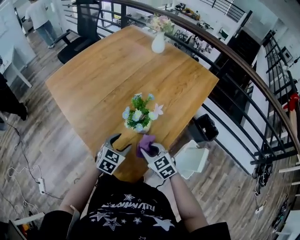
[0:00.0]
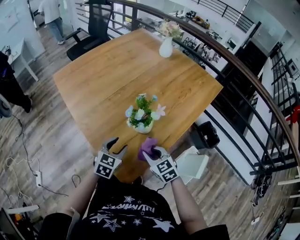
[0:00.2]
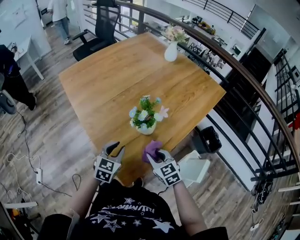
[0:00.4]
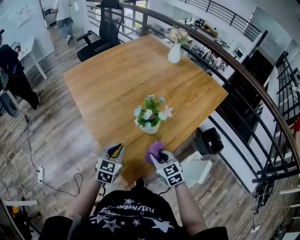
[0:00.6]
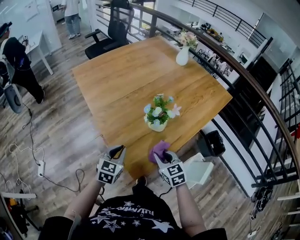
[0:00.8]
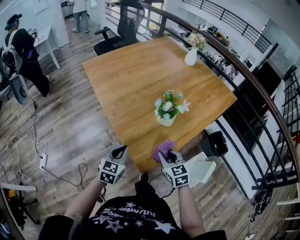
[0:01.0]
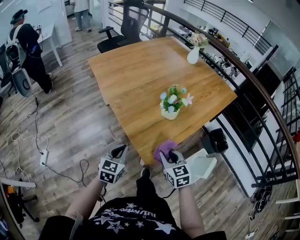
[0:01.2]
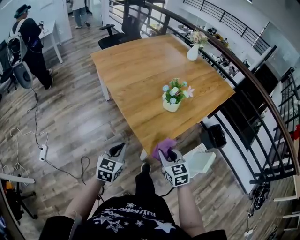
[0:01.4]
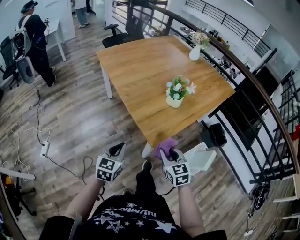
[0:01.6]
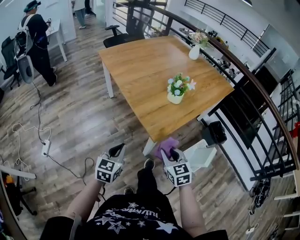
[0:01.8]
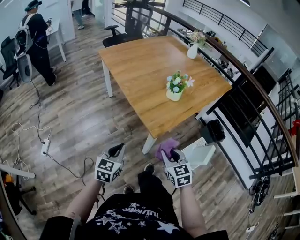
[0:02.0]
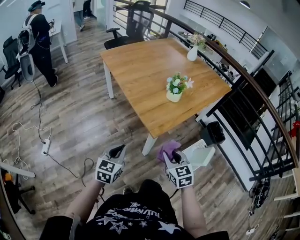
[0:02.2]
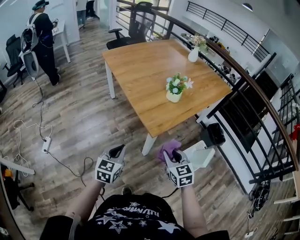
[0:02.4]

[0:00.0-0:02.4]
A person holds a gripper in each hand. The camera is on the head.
0:00.0 to 0:01.2: The left gripper shifts roughly 25 cm backward, to the left and upward, turns by approximately 30 degrees, and closes its fingers. The right gripper moves backward and upward, roughly 15 cm.
0:01.2 to 0:02.4: Both grippers move backward, about 20 cm.

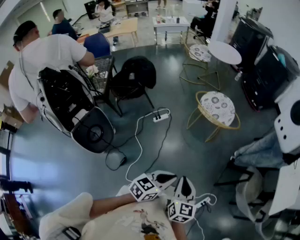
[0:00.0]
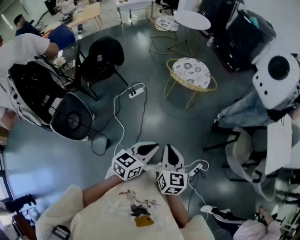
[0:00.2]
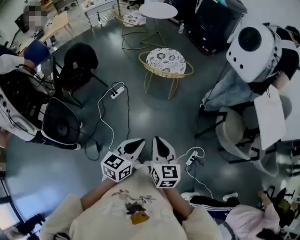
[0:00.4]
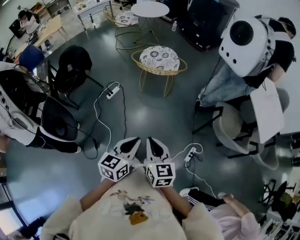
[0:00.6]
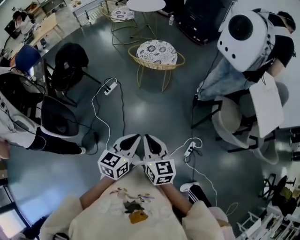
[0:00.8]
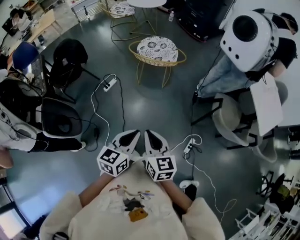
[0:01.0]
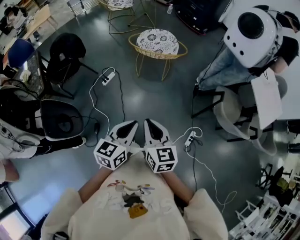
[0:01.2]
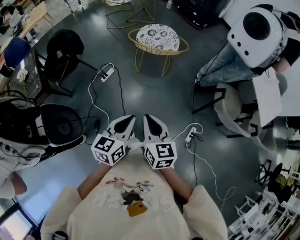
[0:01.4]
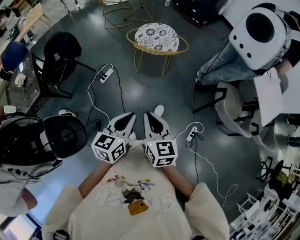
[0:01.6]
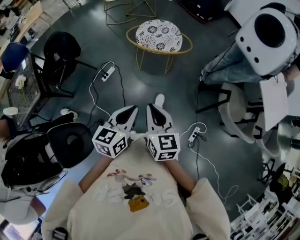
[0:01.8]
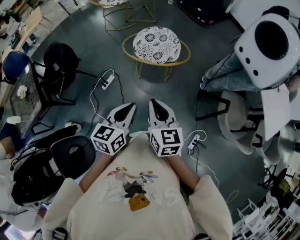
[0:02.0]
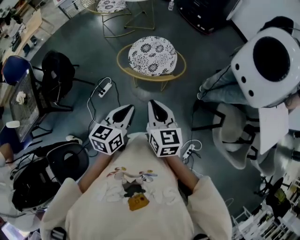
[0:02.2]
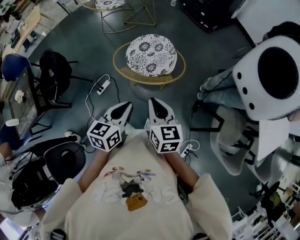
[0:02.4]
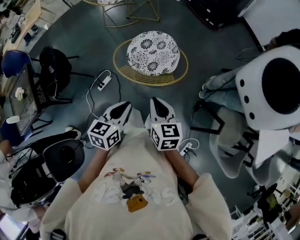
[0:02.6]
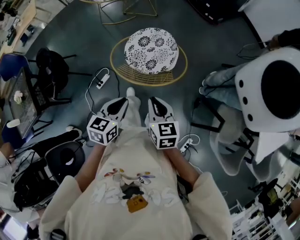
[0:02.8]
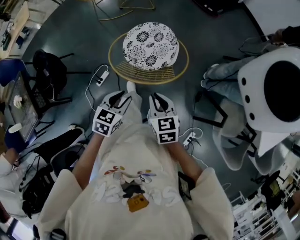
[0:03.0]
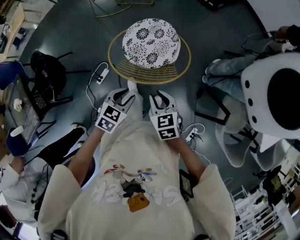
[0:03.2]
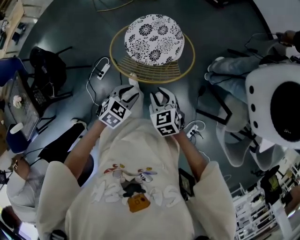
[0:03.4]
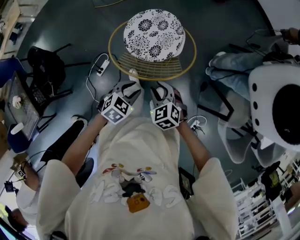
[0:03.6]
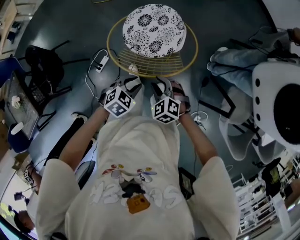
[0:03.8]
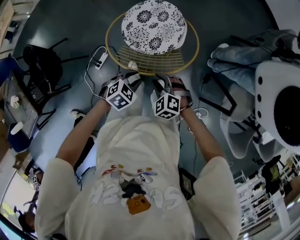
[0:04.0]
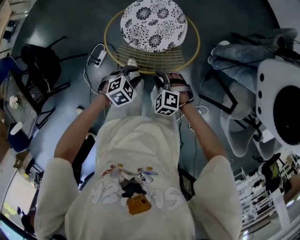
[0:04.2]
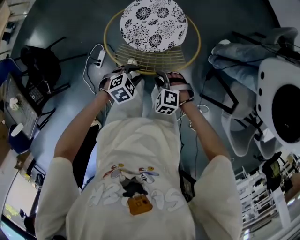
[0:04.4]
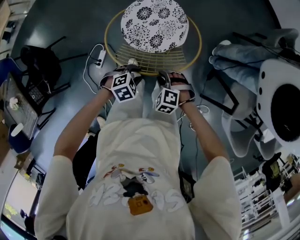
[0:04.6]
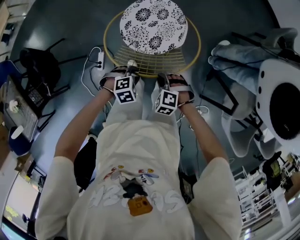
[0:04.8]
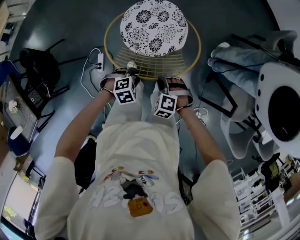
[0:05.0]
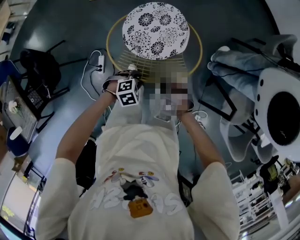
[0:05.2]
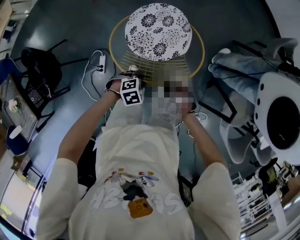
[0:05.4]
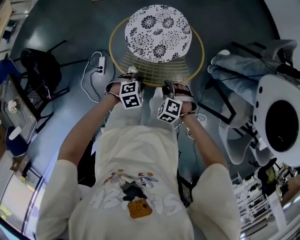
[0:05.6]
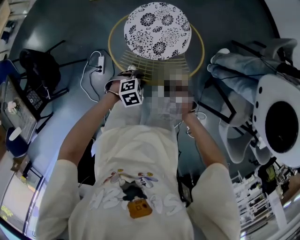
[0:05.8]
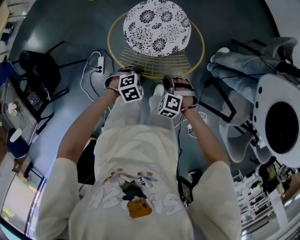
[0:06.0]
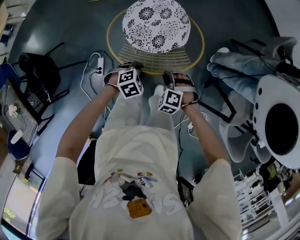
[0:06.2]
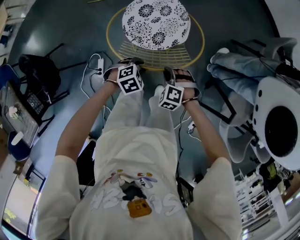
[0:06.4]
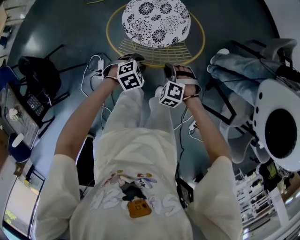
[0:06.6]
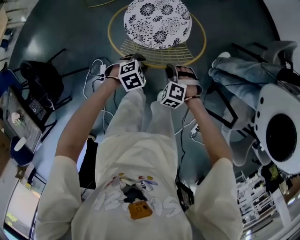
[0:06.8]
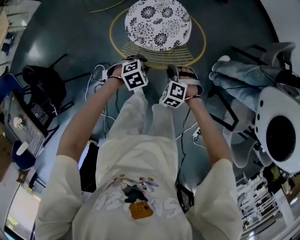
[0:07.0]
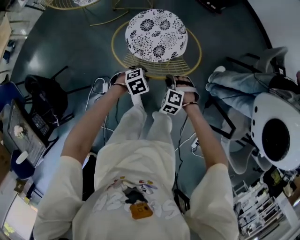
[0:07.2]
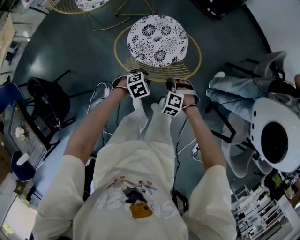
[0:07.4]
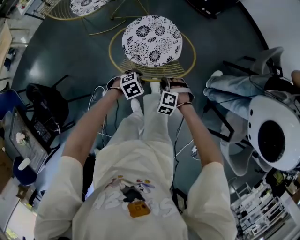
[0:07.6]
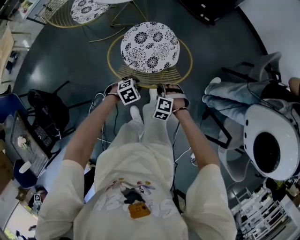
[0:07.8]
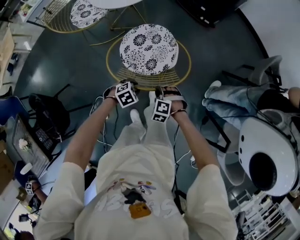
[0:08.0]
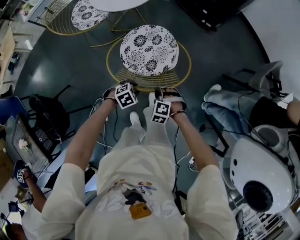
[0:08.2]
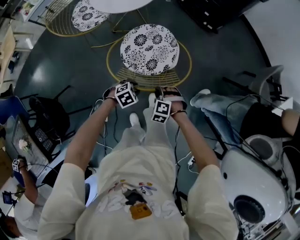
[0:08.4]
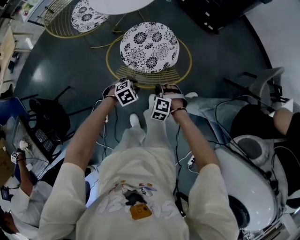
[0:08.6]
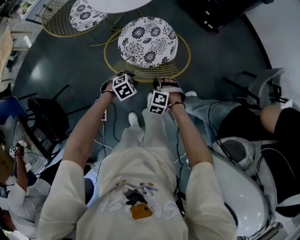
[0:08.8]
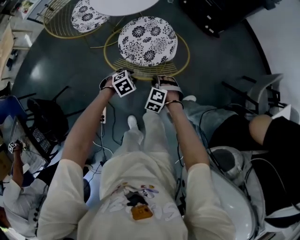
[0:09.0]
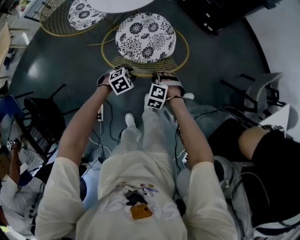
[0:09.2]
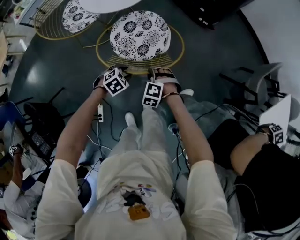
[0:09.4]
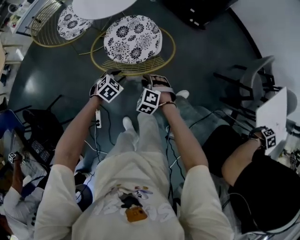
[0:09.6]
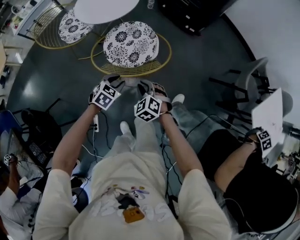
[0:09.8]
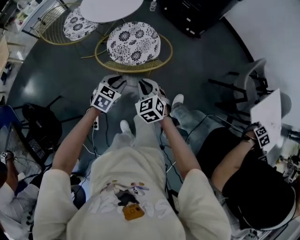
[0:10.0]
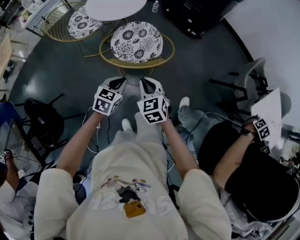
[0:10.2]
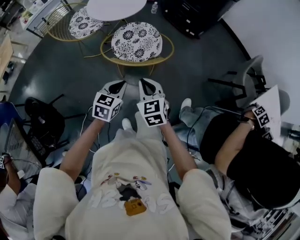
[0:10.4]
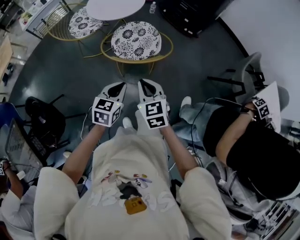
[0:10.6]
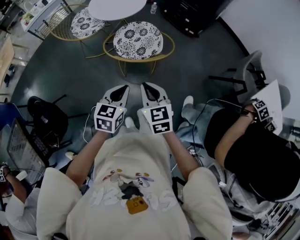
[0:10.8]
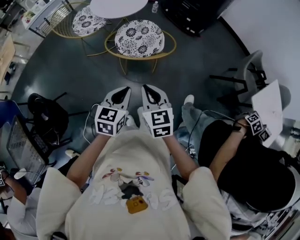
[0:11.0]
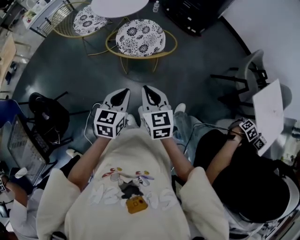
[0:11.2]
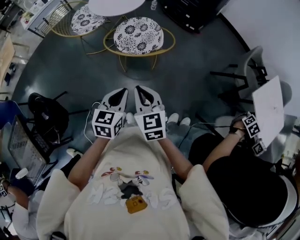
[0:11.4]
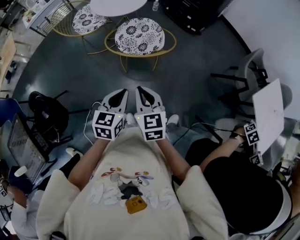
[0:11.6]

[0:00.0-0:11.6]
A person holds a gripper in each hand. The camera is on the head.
0:00.0 to 0:01.4: The left gripper swings left and right, roughly 10 cm each way, with 2 reversals, while the right gripper is displaced forward and to the left by some 15 cm.
0:01.4 to 0:02.8: Both grippers are carried forward, about 50 cm.
0:02.8 to 0:04.4: Both grippers move downward, some 25 cm. The right gripper twists approximately 60 degrees counterclockwise, seen from behind, and opens up. The left gripper turns by approximately 60 degrees, and opens.
0:04.4 to 0:05.8: The grippers move only a little.
0:05.8 to 0:07.2: The grippers both shift backward and to the right by some 10 cm.
0:07.2 to 0:08.8: Both grippers travel together forward and to the left, roughly 20 cm.
0:08.8 to 0:10.2: The right gripper goes roughly 20 cm upward, and twists about 50 degrees clockwise, seen from behind. The left gripper shifts roughly 20 cm upward and backward, rotates approximately 40 degrees, and closes.
0:10.2 to 0:11.6: The two grippers go some 15 cm backward and upward.

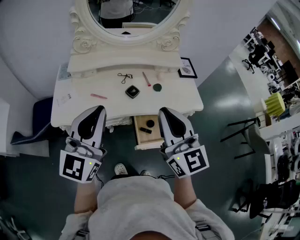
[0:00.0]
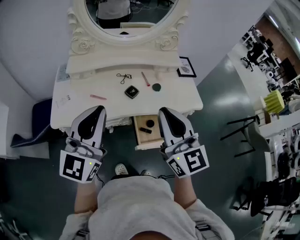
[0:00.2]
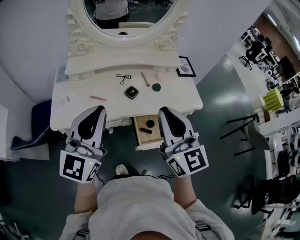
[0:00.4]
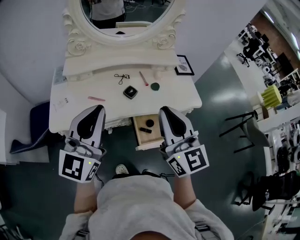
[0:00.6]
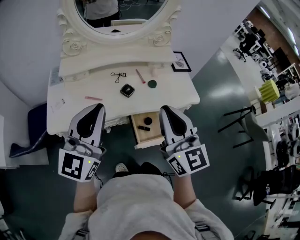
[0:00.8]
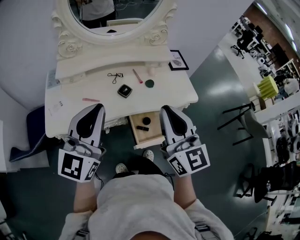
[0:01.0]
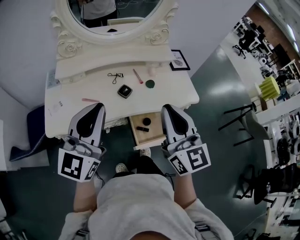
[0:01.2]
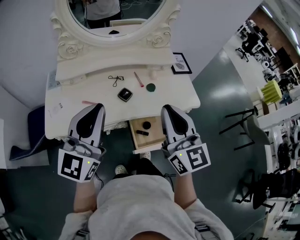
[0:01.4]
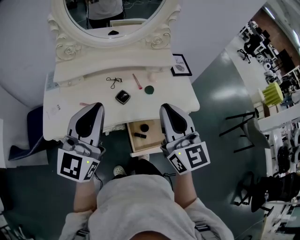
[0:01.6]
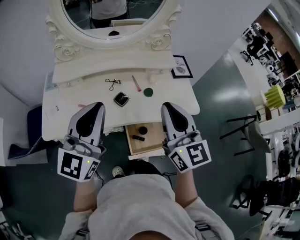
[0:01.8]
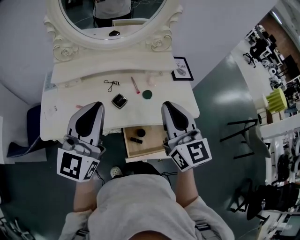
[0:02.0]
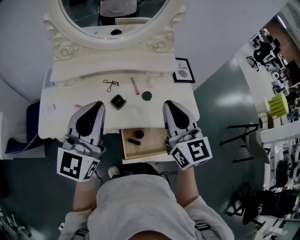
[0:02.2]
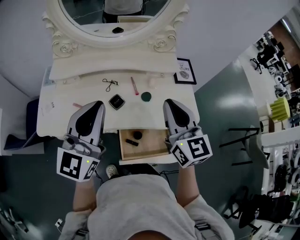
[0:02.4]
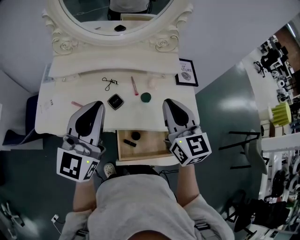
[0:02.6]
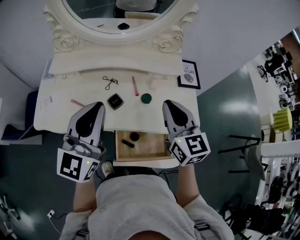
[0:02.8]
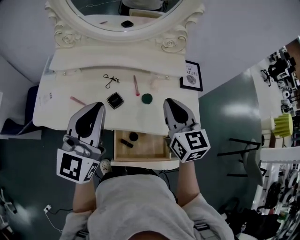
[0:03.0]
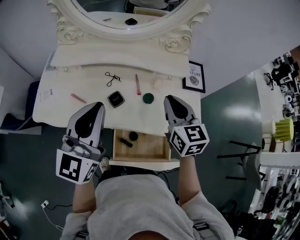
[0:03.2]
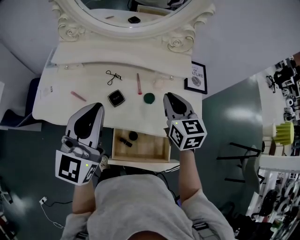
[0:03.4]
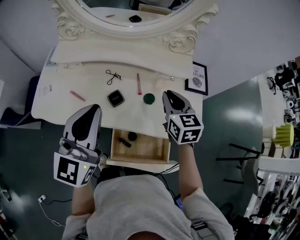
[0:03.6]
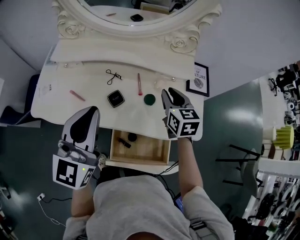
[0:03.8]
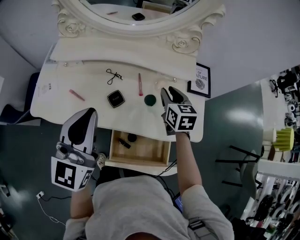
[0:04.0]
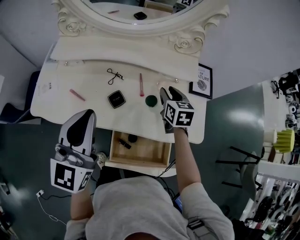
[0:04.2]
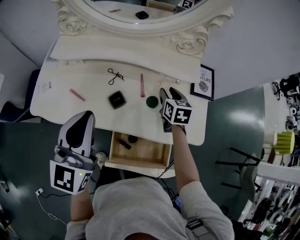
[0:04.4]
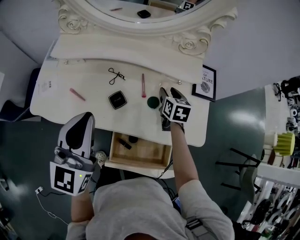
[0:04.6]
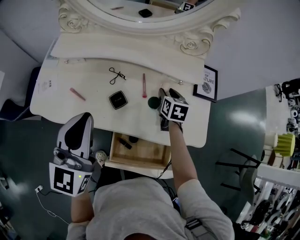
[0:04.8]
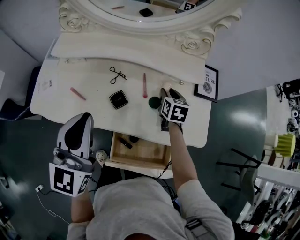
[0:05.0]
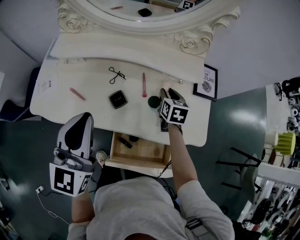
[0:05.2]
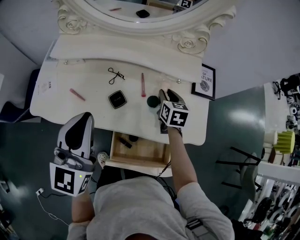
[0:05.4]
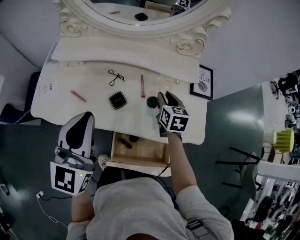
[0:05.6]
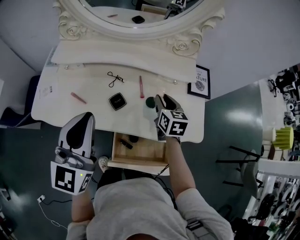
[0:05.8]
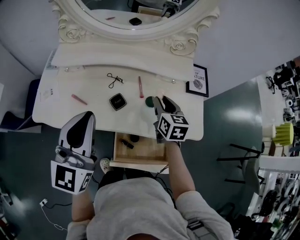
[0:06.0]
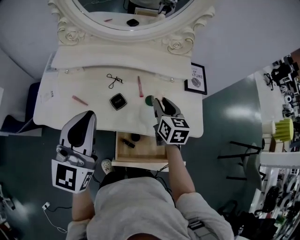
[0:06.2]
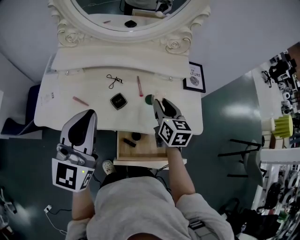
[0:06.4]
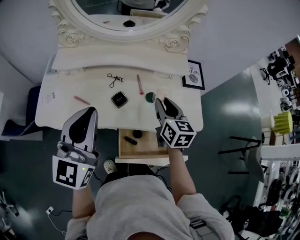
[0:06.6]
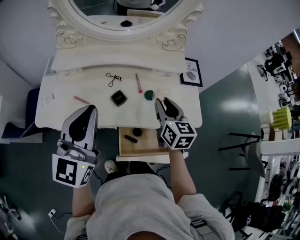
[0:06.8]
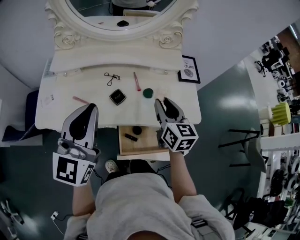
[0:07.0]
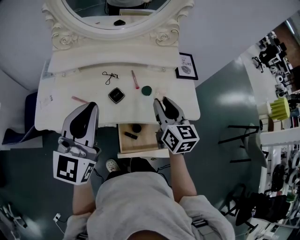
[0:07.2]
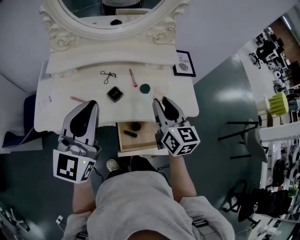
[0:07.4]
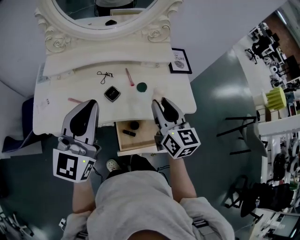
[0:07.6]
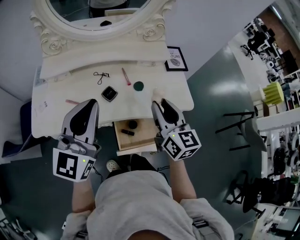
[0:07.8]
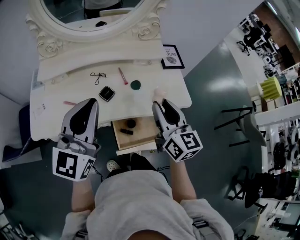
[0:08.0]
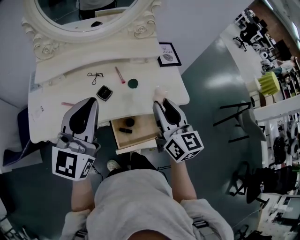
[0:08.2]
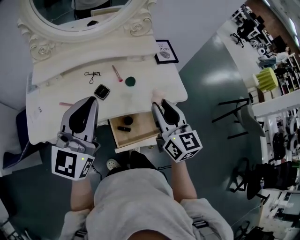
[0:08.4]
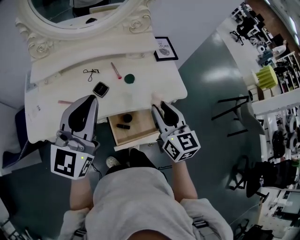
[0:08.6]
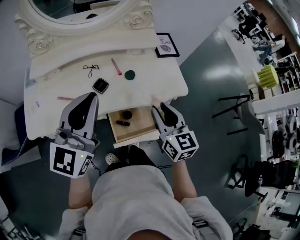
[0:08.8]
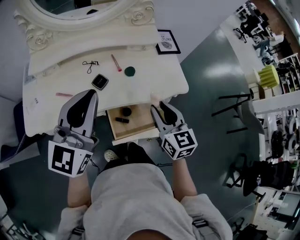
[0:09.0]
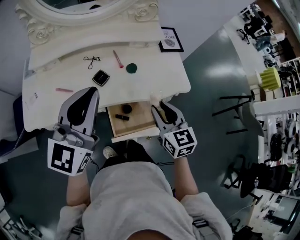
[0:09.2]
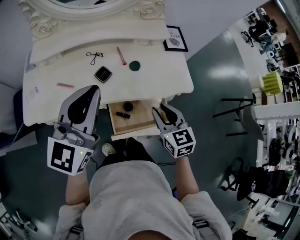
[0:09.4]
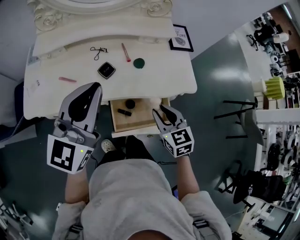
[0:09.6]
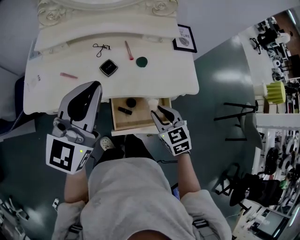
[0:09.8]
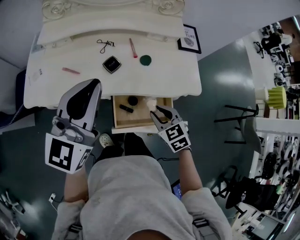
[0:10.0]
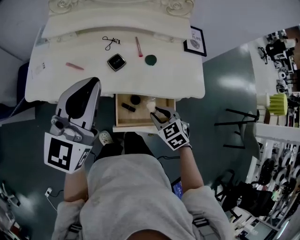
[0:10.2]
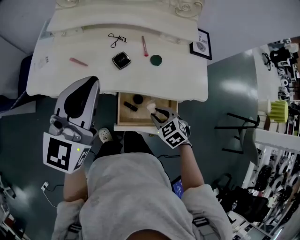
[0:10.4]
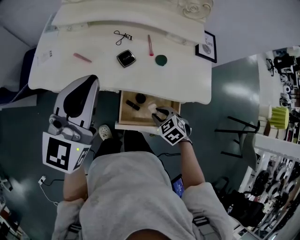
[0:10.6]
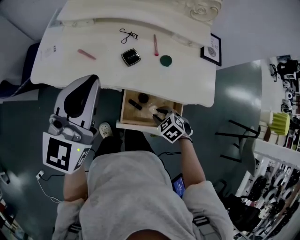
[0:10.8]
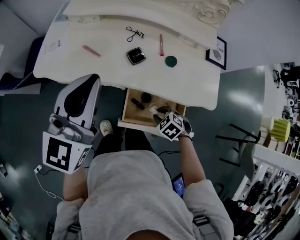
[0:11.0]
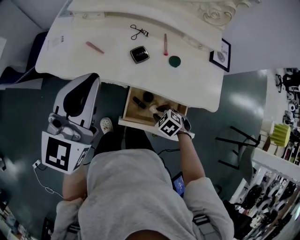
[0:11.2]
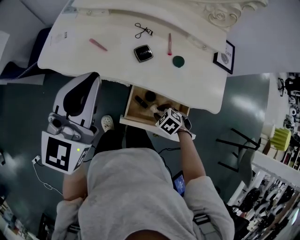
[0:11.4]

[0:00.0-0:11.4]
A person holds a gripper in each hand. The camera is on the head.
0:00.0 to 0:01.4: The right gripper moves some 5 cm, while the left gripper changes place by some 5 cm.
0:01.4 to 0:02.8: The right gripper is displaced forward, to the right and downward by some 20 cm. The left gripper goes about 10 cm forward and to the right.
0:02.8 to 0:04.2: The right gripper goes some 25 cm downward and forward, changes its angle by approximately 30 degrees, and opens up.
0:05.6 to 0:07.2: The right gripper moves backward and upward, roughly 20 cm, and changes its angle by roughly 20 degrees; the left gripper shifts by roughly 5 cm.
0:07.2 to 0:08.6: The right gripper heads backward, covering about 10 cm.
0:08.6 to 0:10.0: The right gripper is displaced downward by about 15 cm, and tips its fingers downward by some 30 degrees.
0:10.0 to 0:11.4: The right gripper goes some 15 cm downward, and rotates roughly 50 degrees; the left gripper ends up about 5 cm from where it was.
